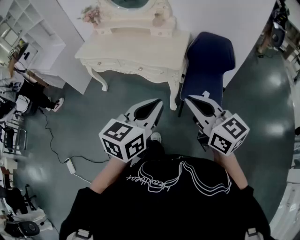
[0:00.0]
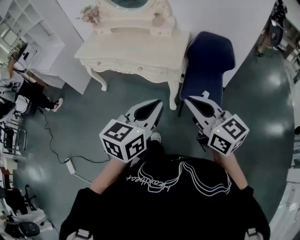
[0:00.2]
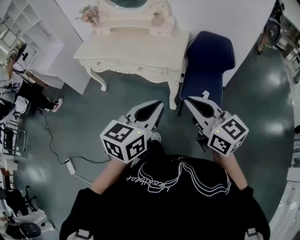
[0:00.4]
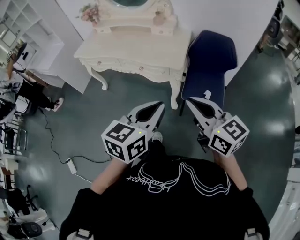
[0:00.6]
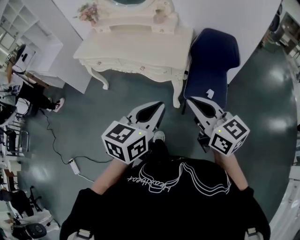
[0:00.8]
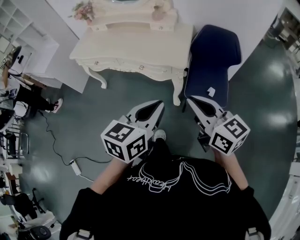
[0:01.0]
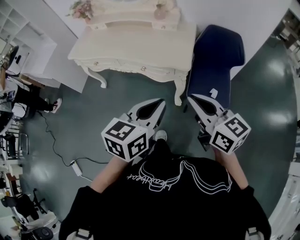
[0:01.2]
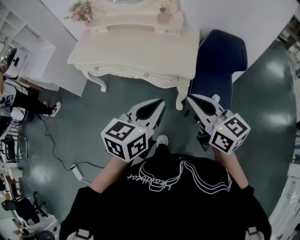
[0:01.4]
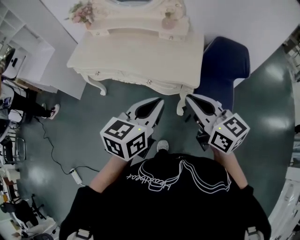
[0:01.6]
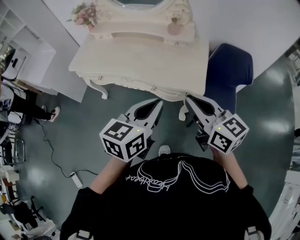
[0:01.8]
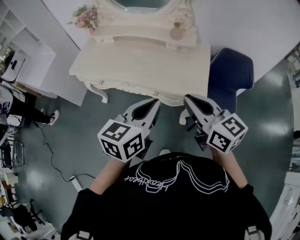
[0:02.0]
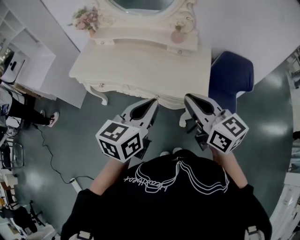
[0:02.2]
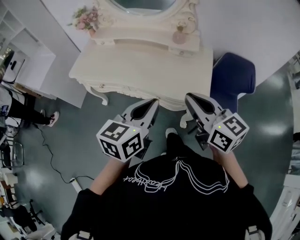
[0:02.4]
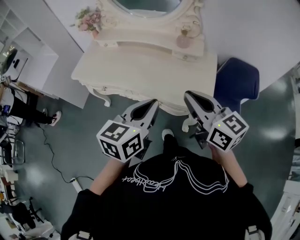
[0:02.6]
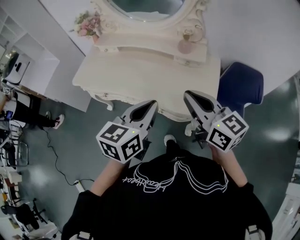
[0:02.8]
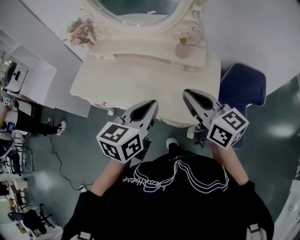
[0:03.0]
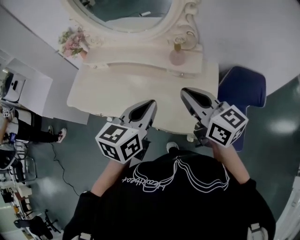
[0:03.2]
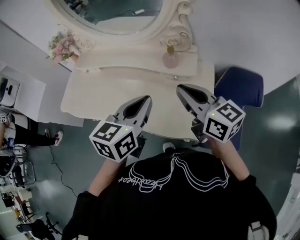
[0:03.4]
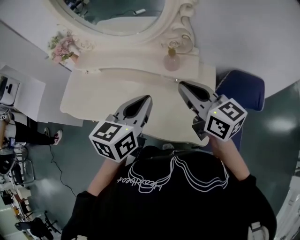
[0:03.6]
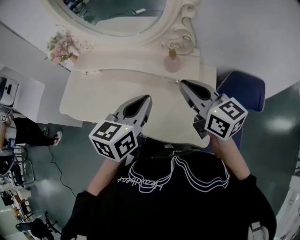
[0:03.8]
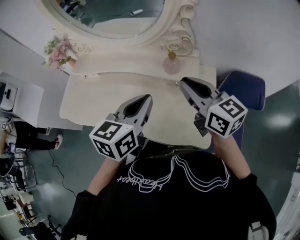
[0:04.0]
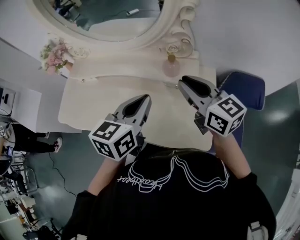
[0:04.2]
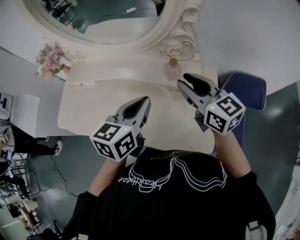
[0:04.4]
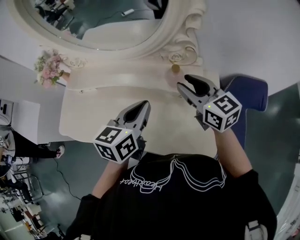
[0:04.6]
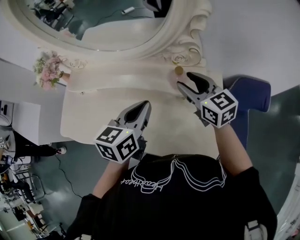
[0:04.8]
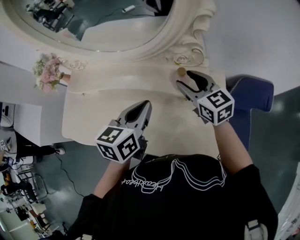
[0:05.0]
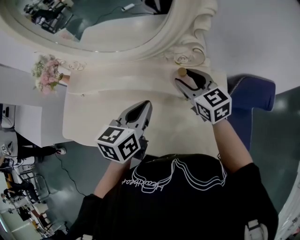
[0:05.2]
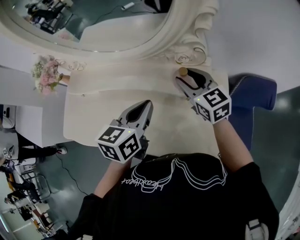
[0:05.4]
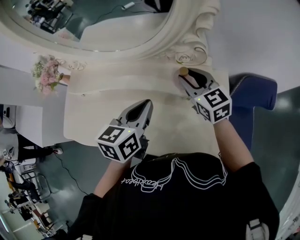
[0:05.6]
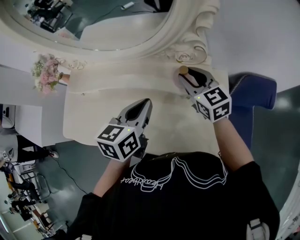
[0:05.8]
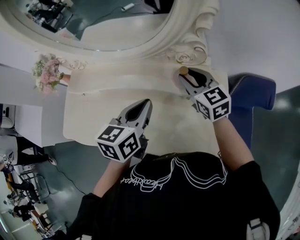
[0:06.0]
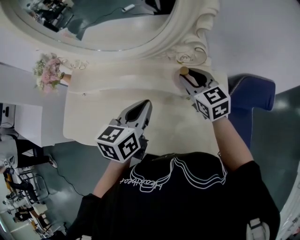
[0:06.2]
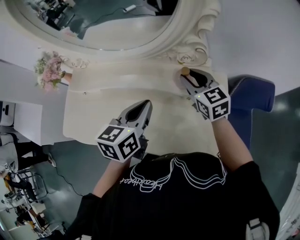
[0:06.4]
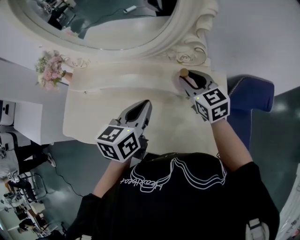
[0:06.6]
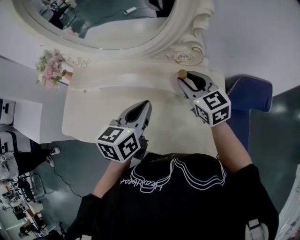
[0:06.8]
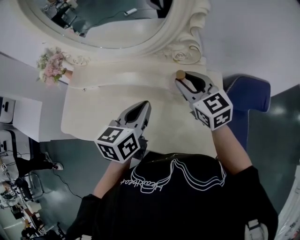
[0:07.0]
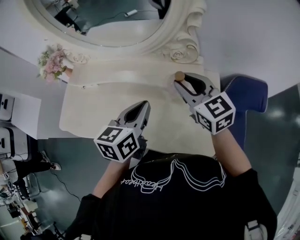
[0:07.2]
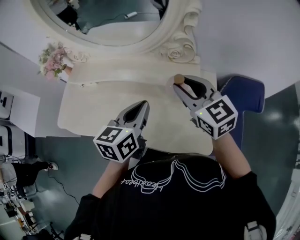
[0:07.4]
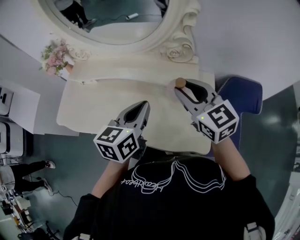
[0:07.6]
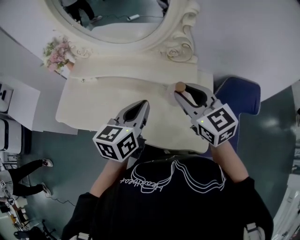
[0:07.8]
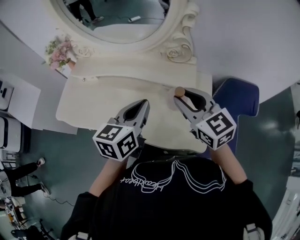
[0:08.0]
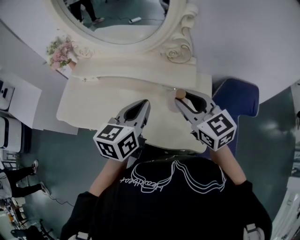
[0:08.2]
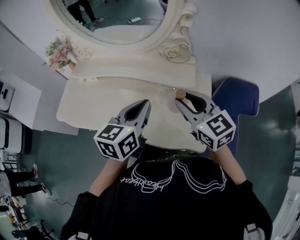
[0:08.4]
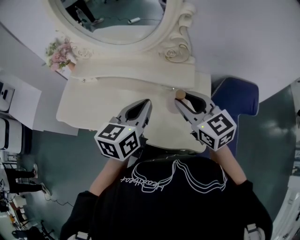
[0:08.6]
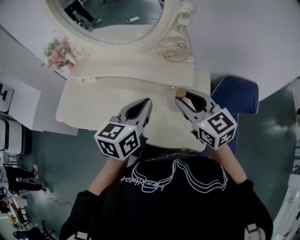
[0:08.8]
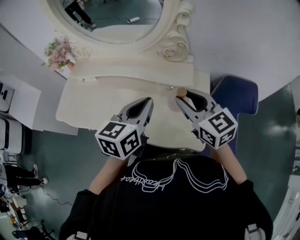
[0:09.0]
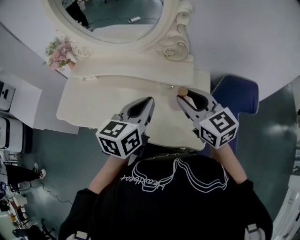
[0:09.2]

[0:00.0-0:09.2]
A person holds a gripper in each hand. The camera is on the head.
0:00.0 to 0:01.6: Both grippers move forward and to the left, approximately 20 cm.
0:01.6 to 0:03.0: Both grippers move forward, approximately 25 cm.
0:03.0 to 0:04.6: Both grippers travel together forward, some 25 cm. The right gripper opens its fingers.
0:04.6 to 0:06.2: The right gripper travels forward and downward by approximately 10 cm.
0:06.2 to 0:07.6: The right gripper shifts approximately 15 cm backward and upward, while the left gripper is displaced backward by roughly 10 cm.
0:07.6 to 0:09.2: The left gripper shifts by roughly 5 cm. Meanwhile the right gripper goes approximately 5 cm backward.

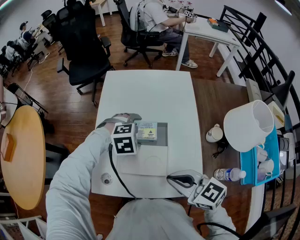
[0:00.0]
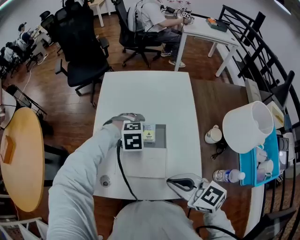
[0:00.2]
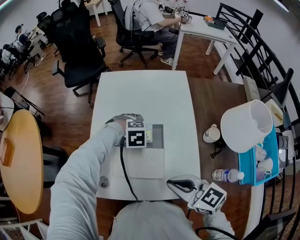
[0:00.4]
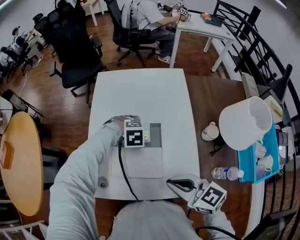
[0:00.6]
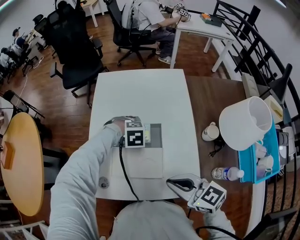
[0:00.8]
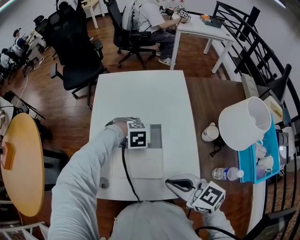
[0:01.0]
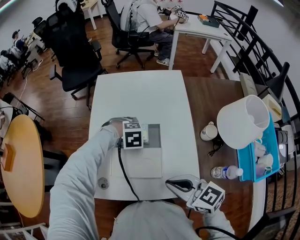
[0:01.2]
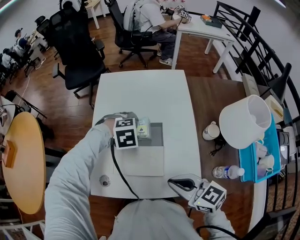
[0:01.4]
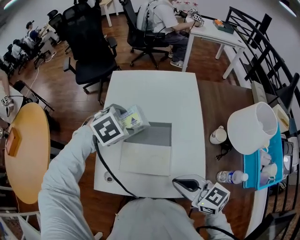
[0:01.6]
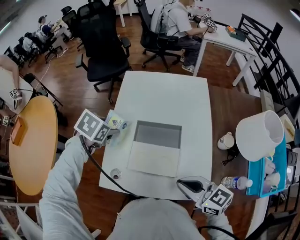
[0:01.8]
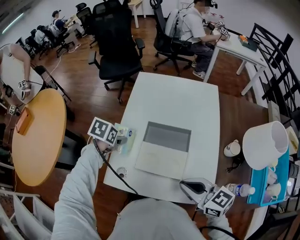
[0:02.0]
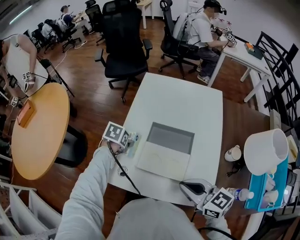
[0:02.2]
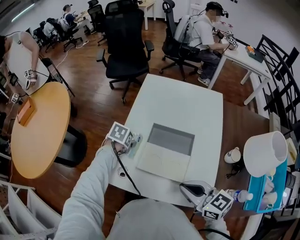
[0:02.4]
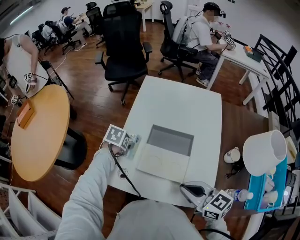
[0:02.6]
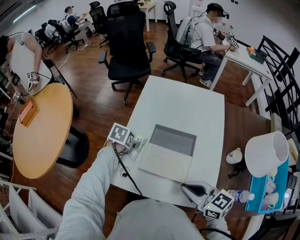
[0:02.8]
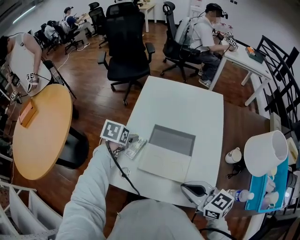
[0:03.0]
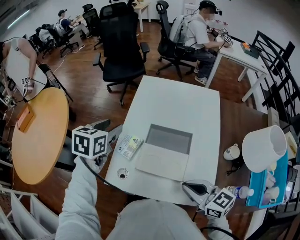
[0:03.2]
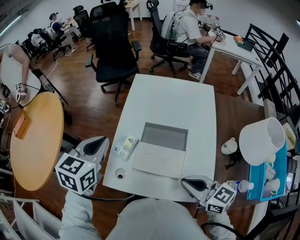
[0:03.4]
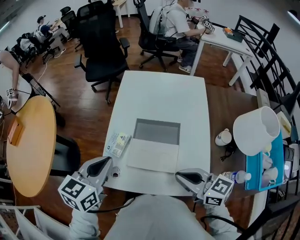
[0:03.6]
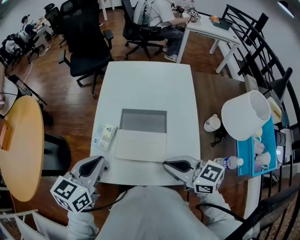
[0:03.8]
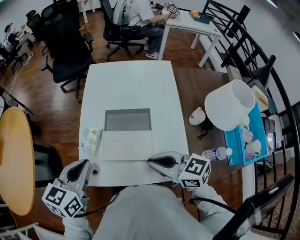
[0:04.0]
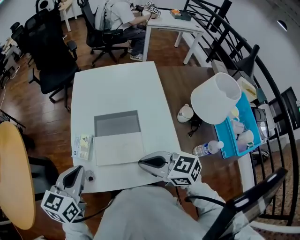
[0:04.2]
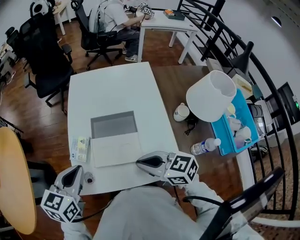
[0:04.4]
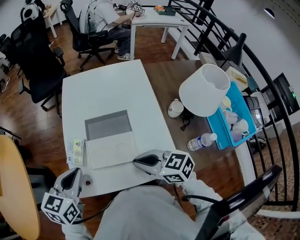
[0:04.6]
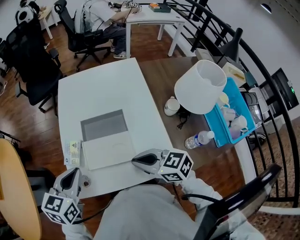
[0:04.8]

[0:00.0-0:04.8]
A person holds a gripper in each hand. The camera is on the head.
0:00.0 to 0:01.6: The left gripper travels upward by about 5 cm, and rotates about 30 degrees.
0:01.6 to 0:03.2: The left gripper shifts approximately 15 cm to the left, moves approximately 15 cm downward and comes back, and rolls counterclockwise, seen from behind, by about 50 degrees.
0:03.2 to 0:04.8: The left gripper moves backward and to the right, roughly 15 cm, changes its angle by roughly 20 degrees, and closes.

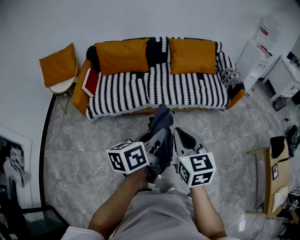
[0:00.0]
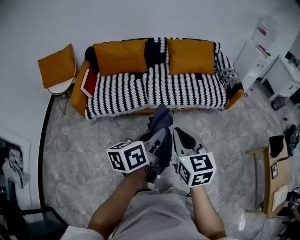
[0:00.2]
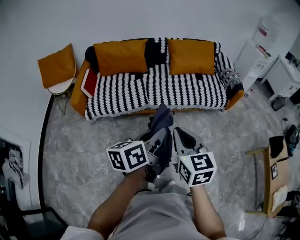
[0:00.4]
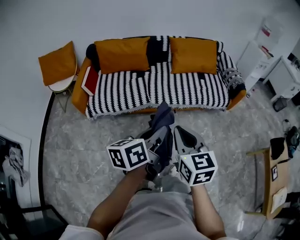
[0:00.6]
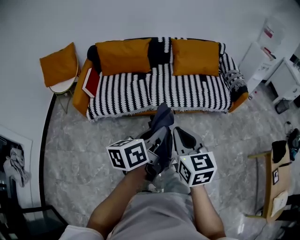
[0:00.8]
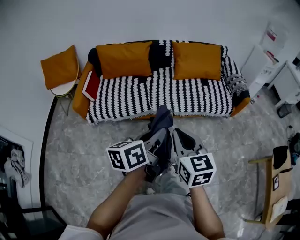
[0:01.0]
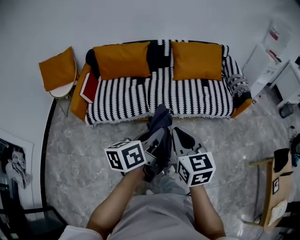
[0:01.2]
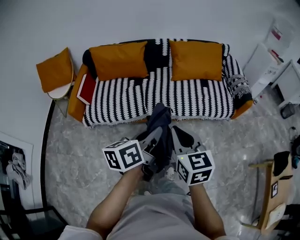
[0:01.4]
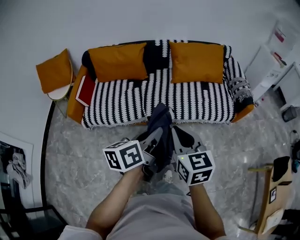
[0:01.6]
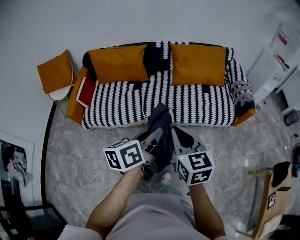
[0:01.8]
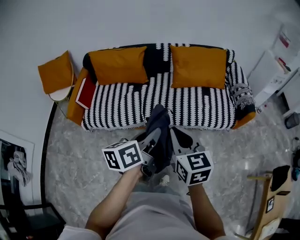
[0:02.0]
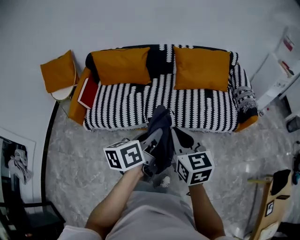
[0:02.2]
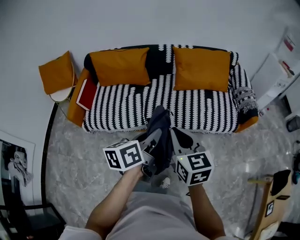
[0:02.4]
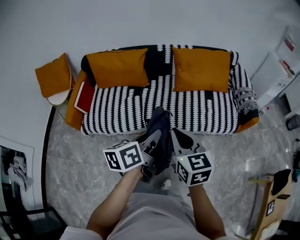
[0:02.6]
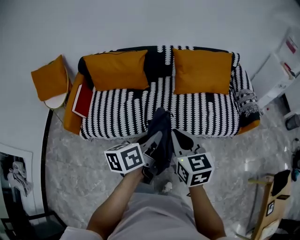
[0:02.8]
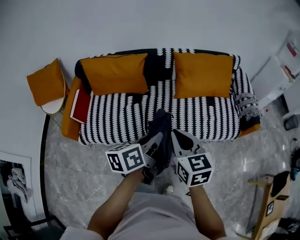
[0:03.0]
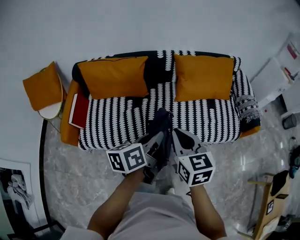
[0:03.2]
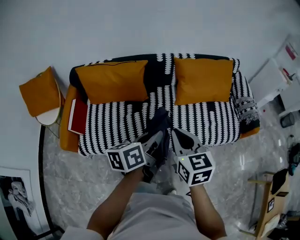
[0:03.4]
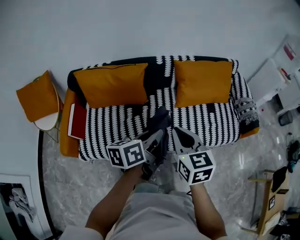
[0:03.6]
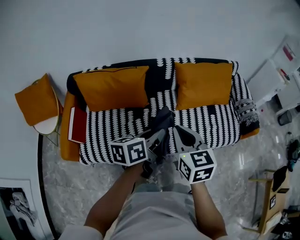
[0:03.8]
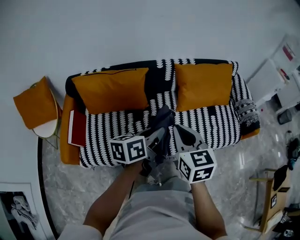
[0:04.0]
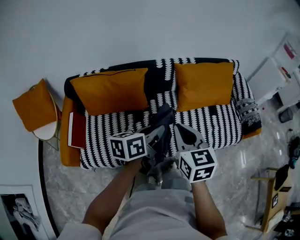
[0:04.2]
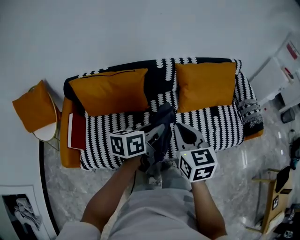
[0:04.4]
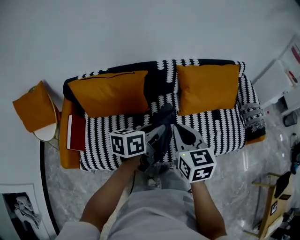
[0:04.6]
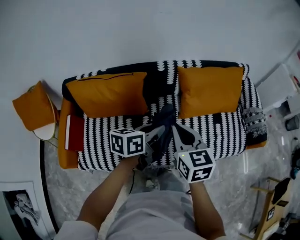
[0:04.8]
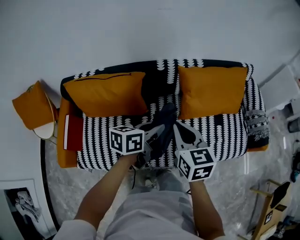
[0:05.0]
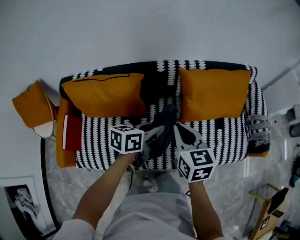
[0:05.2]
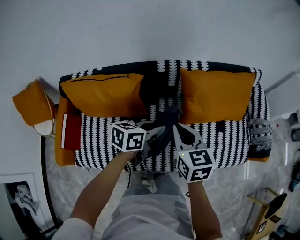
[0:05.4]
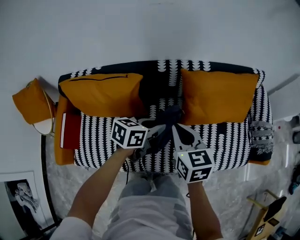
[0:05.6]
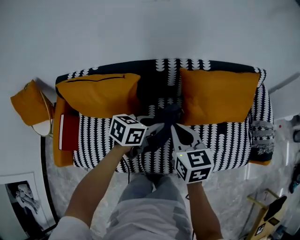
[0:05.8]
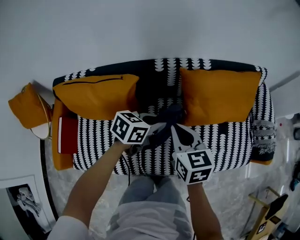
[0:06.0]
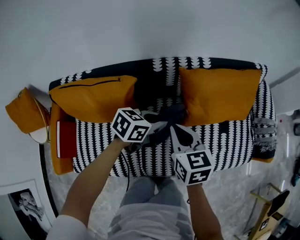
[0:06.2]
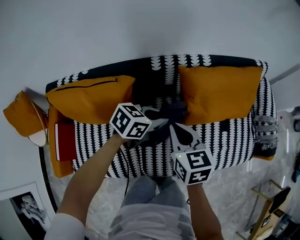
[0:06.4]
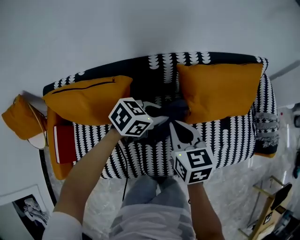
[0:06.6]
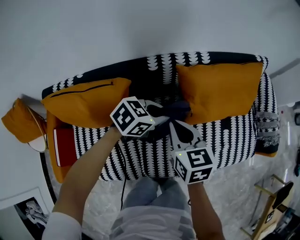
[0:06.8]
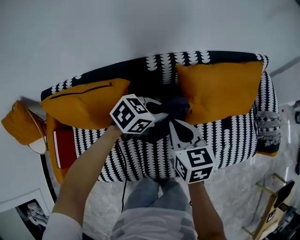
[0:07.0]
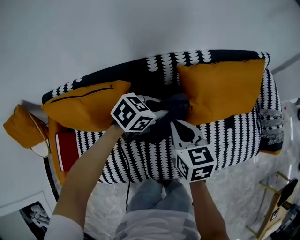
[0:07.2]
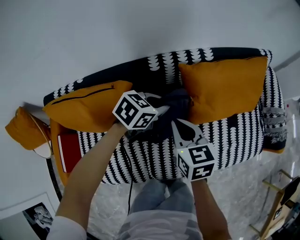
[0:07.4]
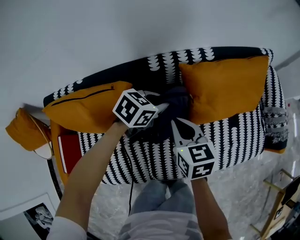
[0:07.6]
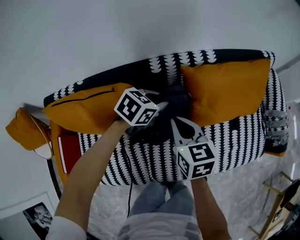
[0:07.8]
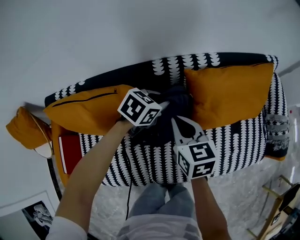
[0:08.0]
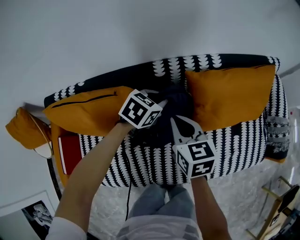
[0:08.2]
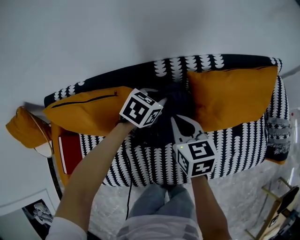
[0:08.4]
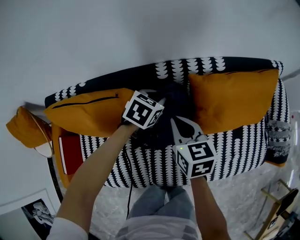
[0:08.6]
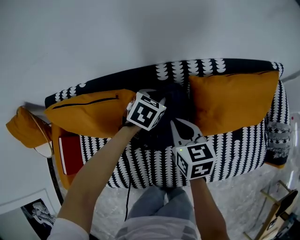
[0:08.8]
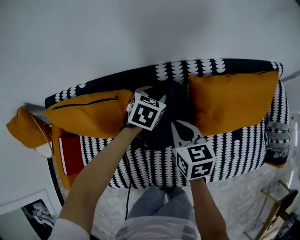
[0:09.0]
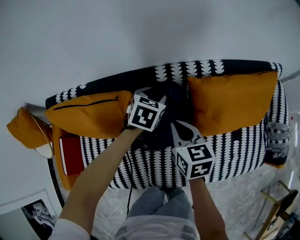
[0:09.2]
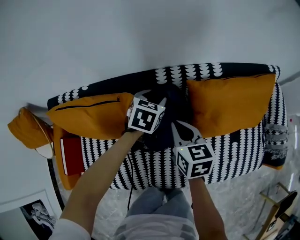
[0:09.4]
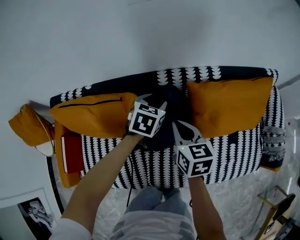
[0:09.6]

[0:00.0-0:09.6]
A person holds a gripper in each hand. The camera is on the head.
0:00.0 to 0:01.6: Both grippers move forward, some 20 cm.
0:01.6 to 0:03.2: Both grippers move forward, some 25 cm.
0:03.2 to 0:04.8: The two grippers go about 20 cm forward.
0:04.8 to 0:06.4: Both grippers move forward and downward, approximately 20 cm. The left gripper swivels roughly 30 degrees.
0:06.4 to 0:08.0: The right gripper travels forward by about 5 cm, while the left gripper heads forward, to the left and downward, covering some 15 cm.
0:08.0 to 0:09.6: The left gripper shifts by some 5 cm, turns by some 30 degrees, and opens.
